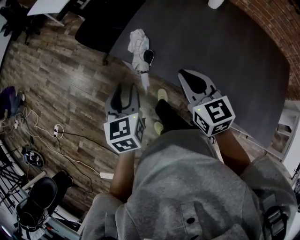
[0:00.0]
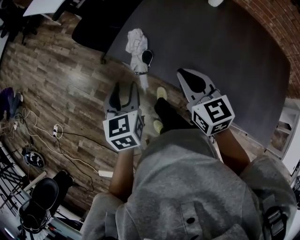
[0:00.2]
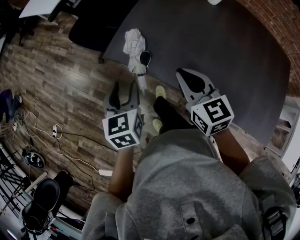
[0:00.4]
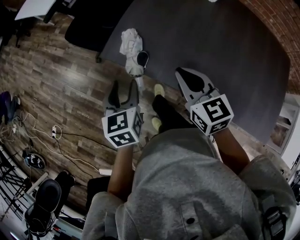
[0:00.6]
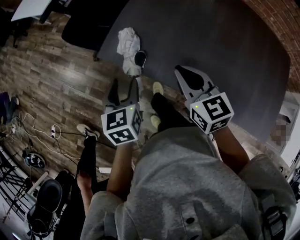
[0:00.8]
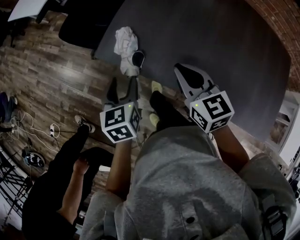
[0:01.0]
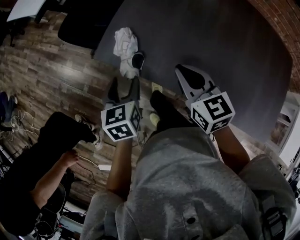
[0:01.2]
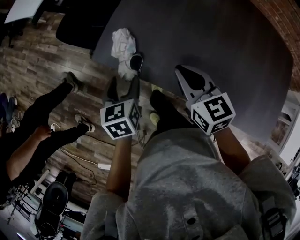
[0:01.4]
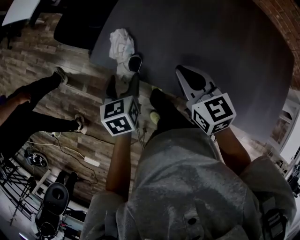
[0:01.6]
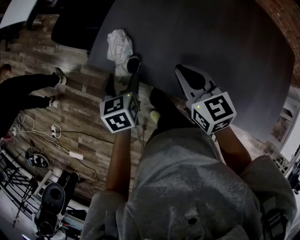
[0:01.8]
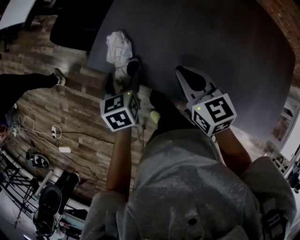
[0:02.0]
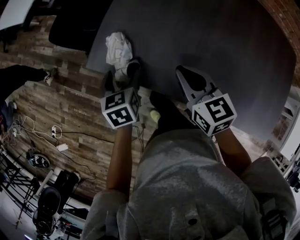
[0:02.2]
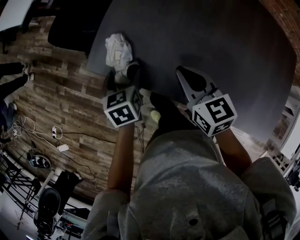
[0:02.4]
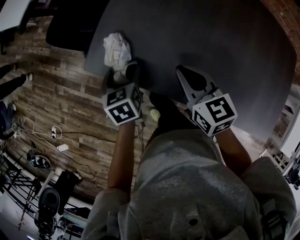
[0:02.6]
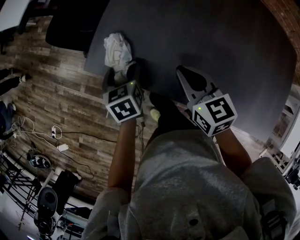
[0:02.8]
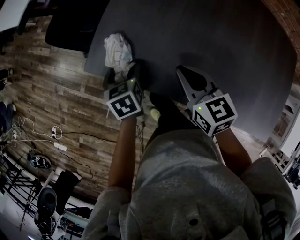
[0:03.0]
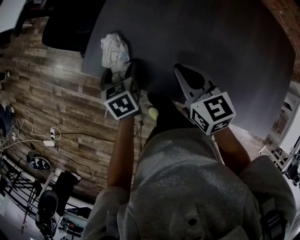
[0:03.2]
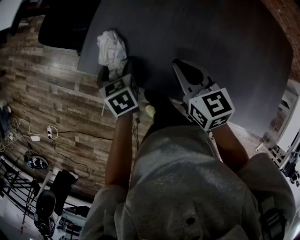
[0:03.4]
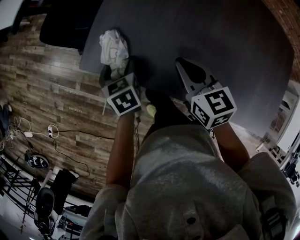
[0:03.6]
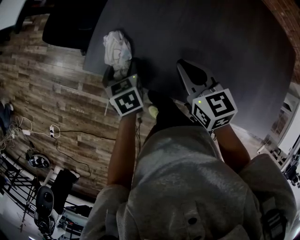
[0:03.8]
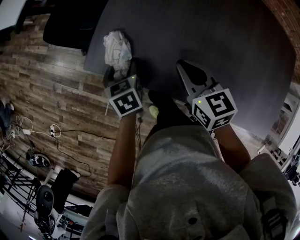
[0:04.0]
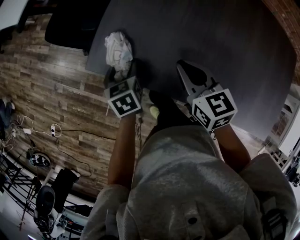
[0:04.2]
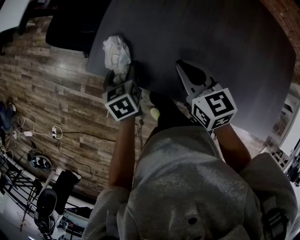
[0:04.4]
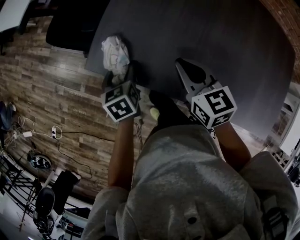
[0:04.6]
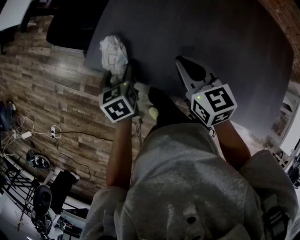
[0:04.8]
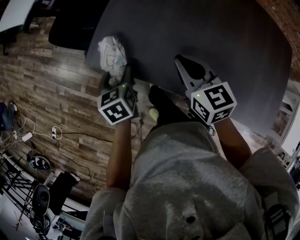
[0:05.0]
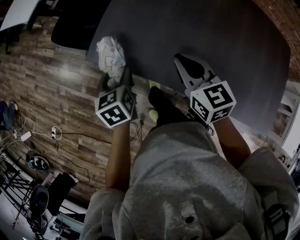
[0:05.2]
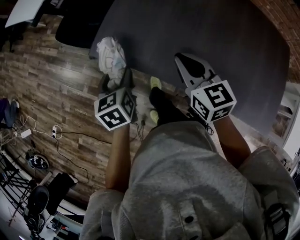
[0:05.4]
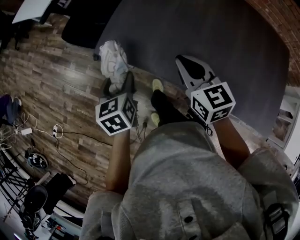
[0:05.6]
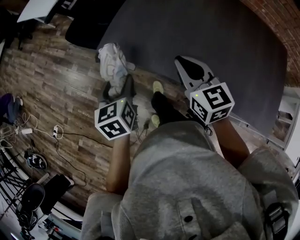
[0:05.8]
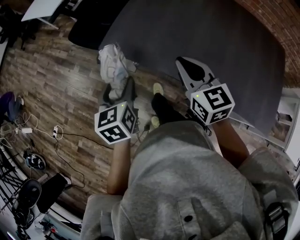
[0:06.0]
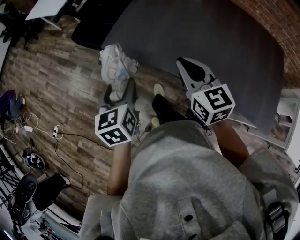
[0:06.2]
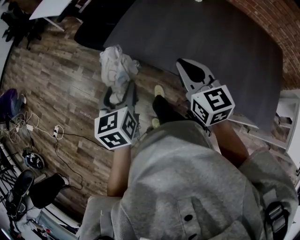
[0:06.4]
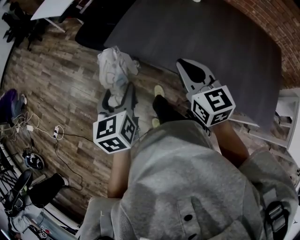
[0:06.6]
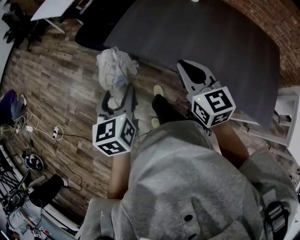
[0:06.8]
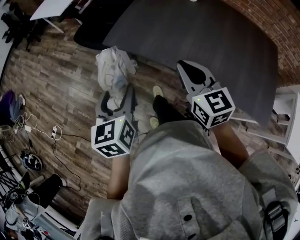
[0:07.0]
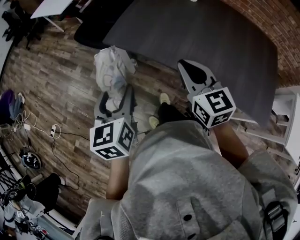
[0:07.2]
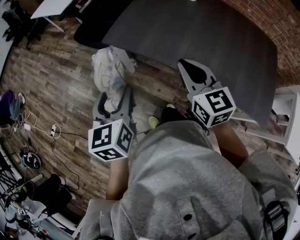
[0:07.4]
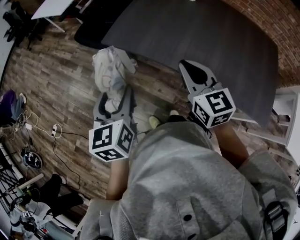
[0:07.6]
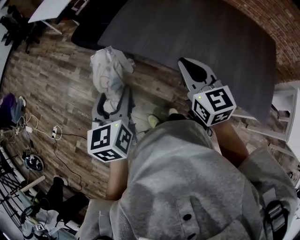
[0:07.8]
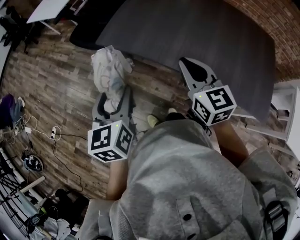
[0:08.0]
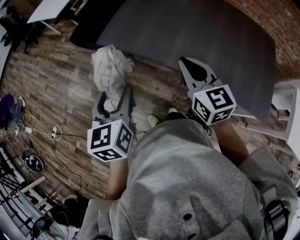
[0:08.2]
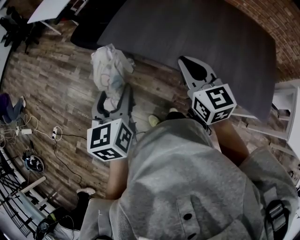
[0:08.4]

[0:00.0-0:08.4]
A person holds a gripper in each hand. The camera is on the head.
0:00.0 to 0:01.4: The right gripper travels forward and downward by about 10 cm. Meanwhile the left gripper heads downward, forward and to the right, covering about 15 cm.
0:01.4 to 0:02.8: The right gripper is displaced downward by some 5 cm. The left gripper moves downward and forward, some 10 cm.
0:02.8 to 0:04.2: The grippers stay close to where they were, moving slightly.
0:04.2 to 0:05.6: The right gripper travels backward and upward by about 10 cm. The left gripper is displaced upward and backward by approximately 15 cm.
0:05.6 to 0:07.0: The grippers both shift backward and upward by approximately 20 cm.
0:07.0 to 0:08.4: The grippers stay close to where they were, moving slightly.

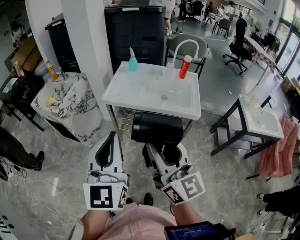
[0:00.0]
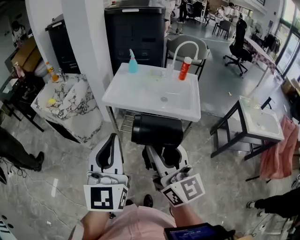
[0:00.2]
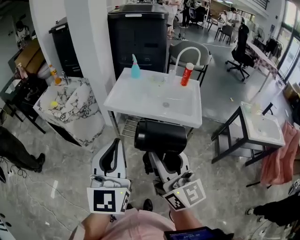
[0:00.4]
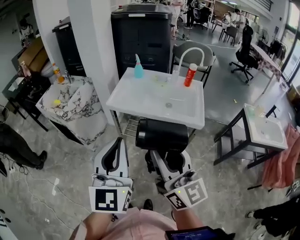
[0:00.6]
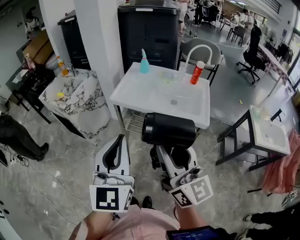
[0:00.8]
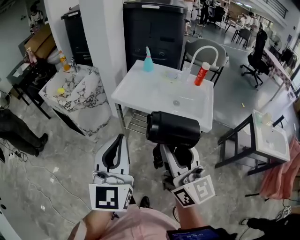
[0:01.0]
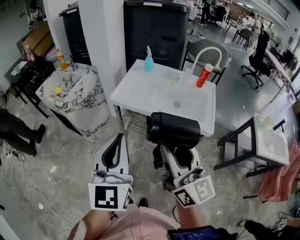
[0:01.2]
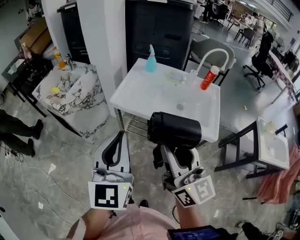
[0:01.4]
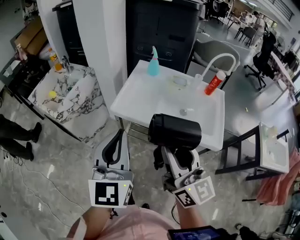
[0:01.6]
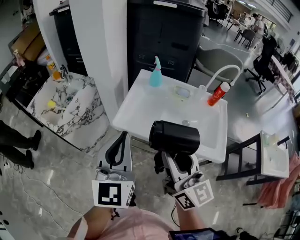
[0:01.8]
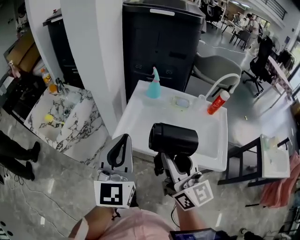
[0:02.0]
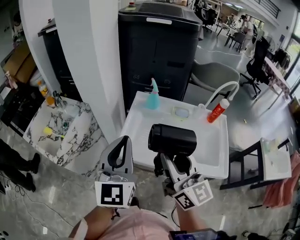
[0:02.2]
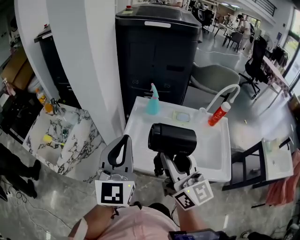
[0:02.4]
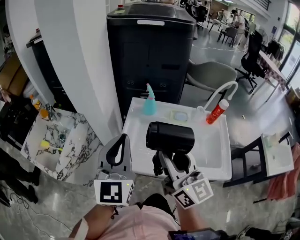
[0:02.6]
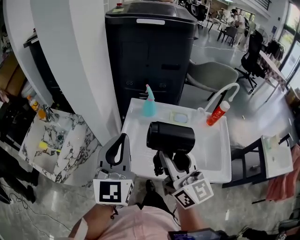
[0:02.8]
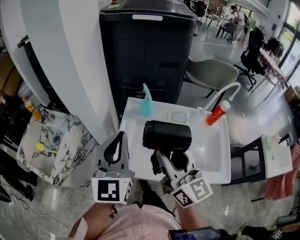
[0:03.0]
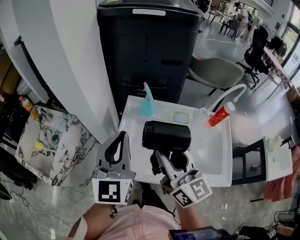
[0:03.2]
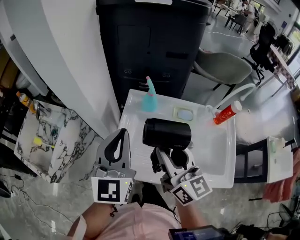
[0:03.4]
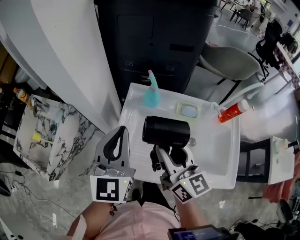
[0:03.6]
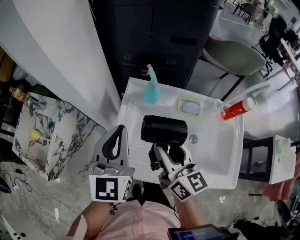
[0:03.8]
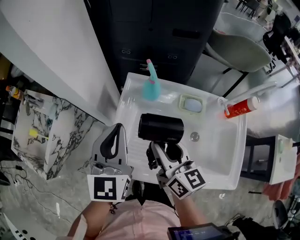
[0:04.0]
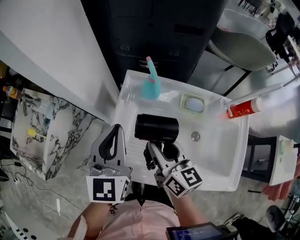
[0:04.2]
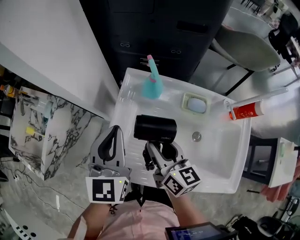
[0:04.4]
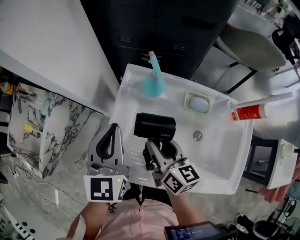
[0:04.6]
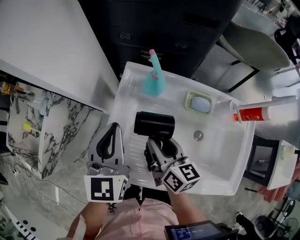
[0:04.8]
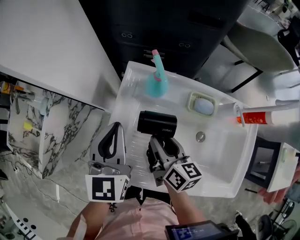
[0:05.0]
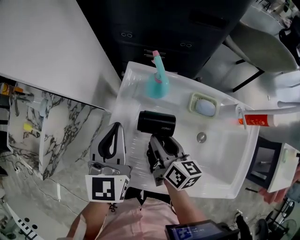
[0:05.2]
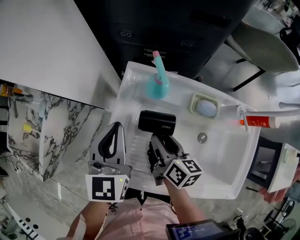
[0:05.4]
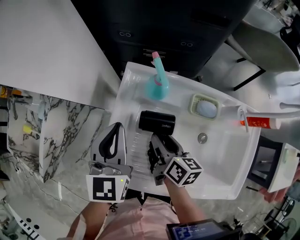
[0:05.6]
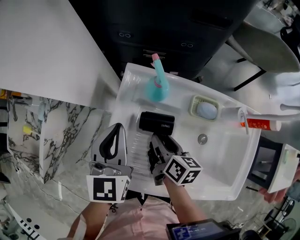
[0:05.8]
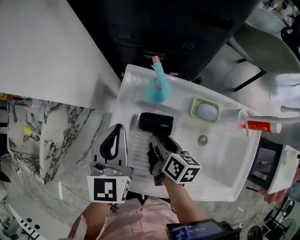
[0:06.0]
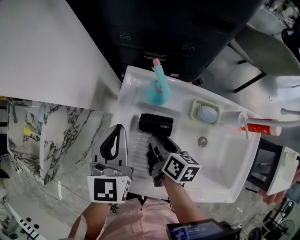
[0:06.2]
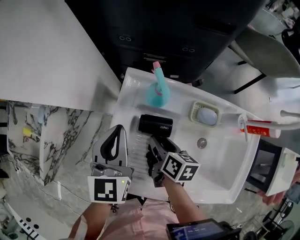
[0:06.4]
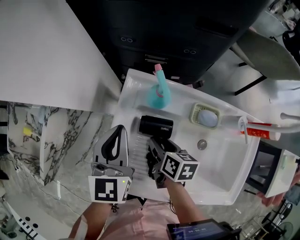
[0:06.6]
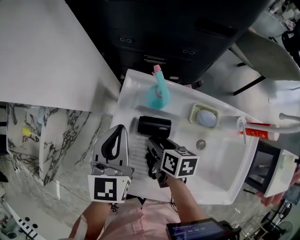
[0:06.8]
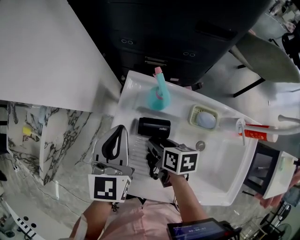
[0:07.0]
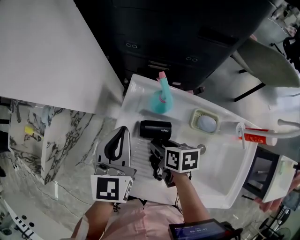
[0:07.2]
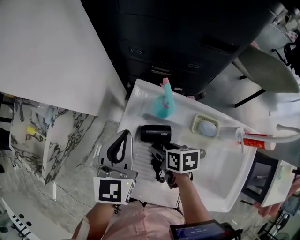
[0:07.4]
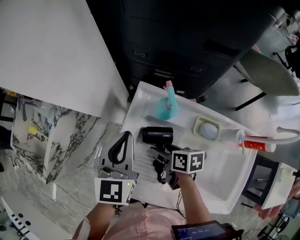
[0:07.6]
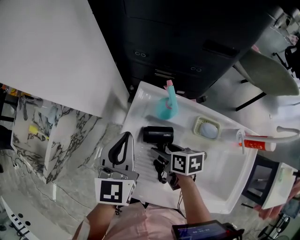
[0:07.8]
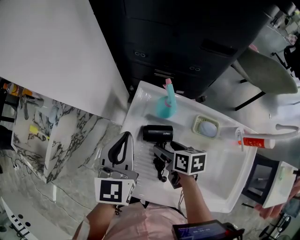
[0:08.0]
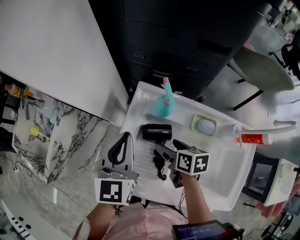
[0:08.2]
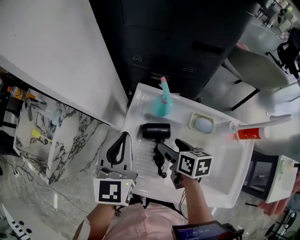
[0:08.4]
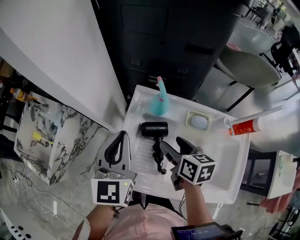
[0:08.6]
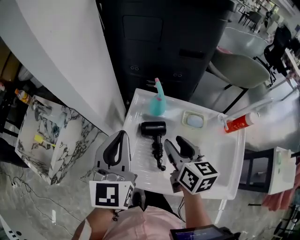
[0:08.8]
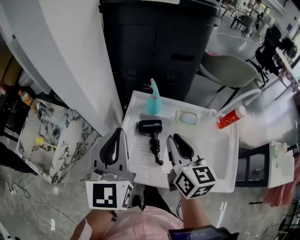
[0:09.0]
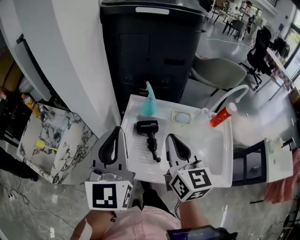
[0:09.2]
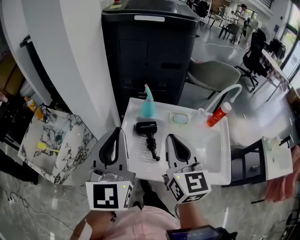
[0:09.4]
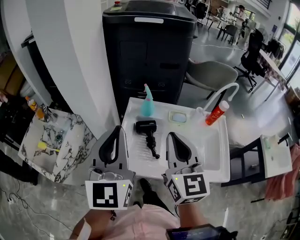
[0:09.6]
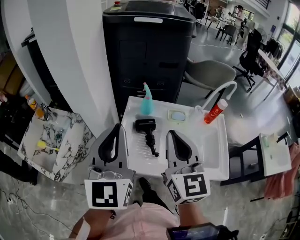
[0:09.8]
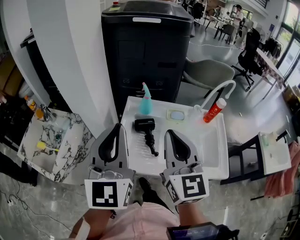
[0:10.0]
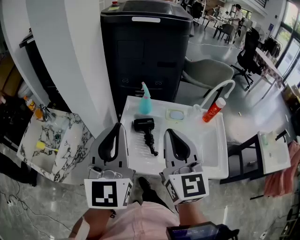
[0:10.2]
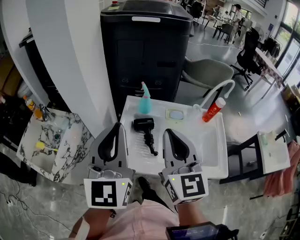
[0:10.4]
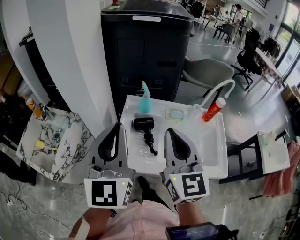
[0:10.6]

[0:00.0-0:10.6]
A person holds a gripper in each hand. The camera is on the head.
0:00.0 to 0:01.6: The two grippers go some 20 cm forward.
0:01.6 to 0:03.0: The grippers both shift forward by about 25 cm.
0:03.0 to 0:04.6: Both grippers travel together downward and forward, about 20 cm. The right gripper rotates approximately 30 degrees.
0:04.6 to 0:06.0: The right gripper moves downward, some 10 cm, and swivels approximately 30 degrees; the left gripper shifts by about 5 cm.
0:06.0 to 0:07.6: The right gripper changes its angle by roughly 30 degrees, and opens.
0:07.6 to 0:09.0: The right gripper is displaced upward by some 25 cm, rotates roughly 50 degrees, and closes. The left gripper is displaced upward and backward by about 20 cm.
0:09.0 to 0:10.6: The right gripper goes about 15 cm upward and backward, and swivels about 30 degrees; the left gripper shifts about 10 cm backward and upward.

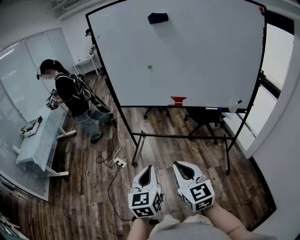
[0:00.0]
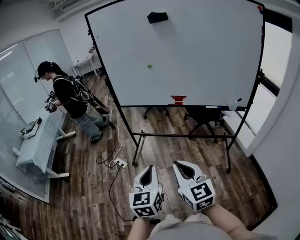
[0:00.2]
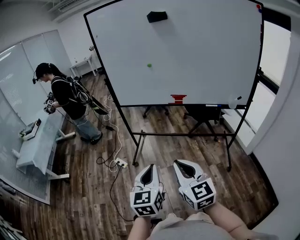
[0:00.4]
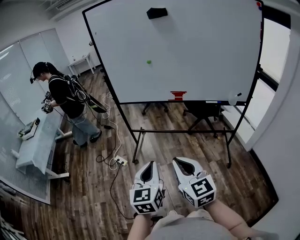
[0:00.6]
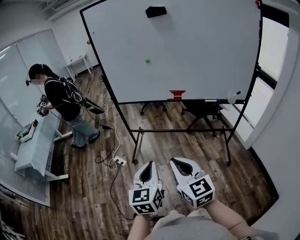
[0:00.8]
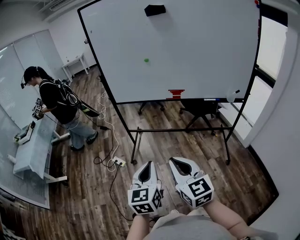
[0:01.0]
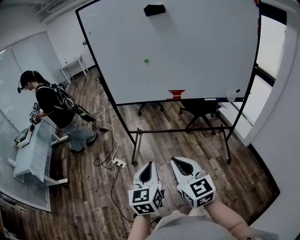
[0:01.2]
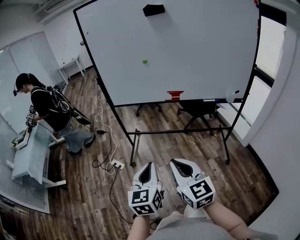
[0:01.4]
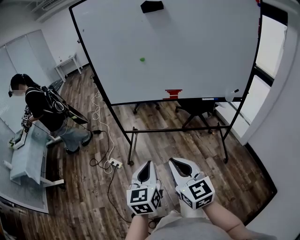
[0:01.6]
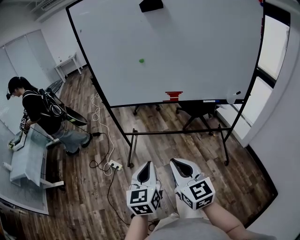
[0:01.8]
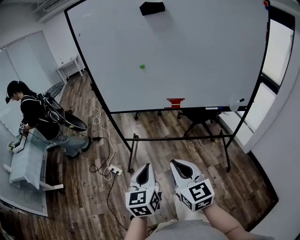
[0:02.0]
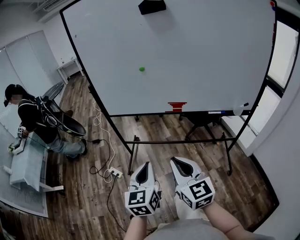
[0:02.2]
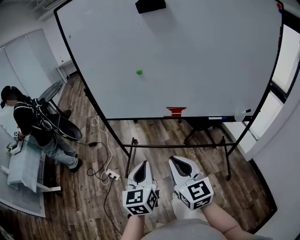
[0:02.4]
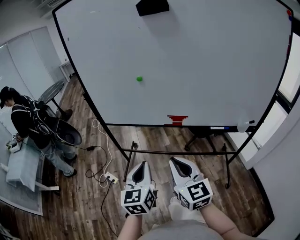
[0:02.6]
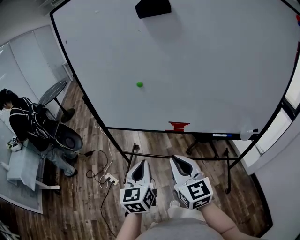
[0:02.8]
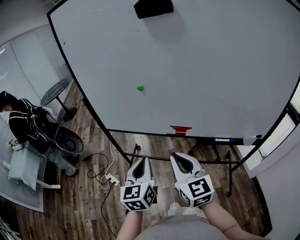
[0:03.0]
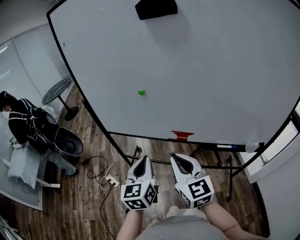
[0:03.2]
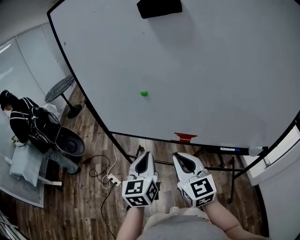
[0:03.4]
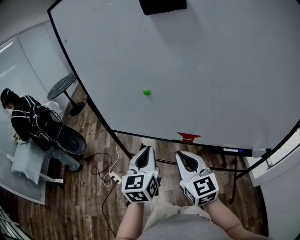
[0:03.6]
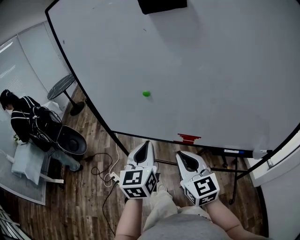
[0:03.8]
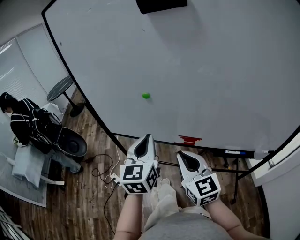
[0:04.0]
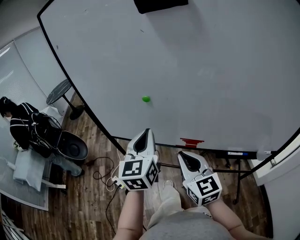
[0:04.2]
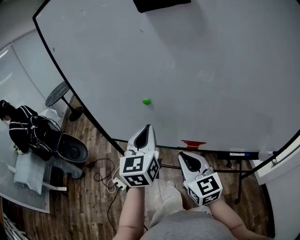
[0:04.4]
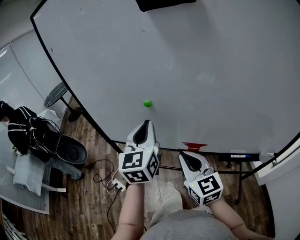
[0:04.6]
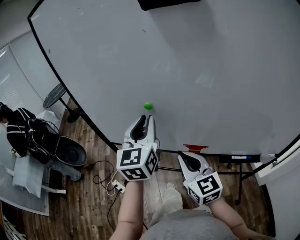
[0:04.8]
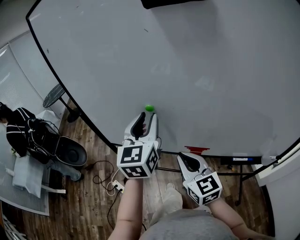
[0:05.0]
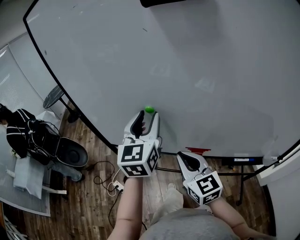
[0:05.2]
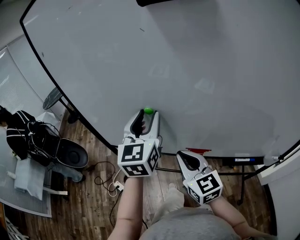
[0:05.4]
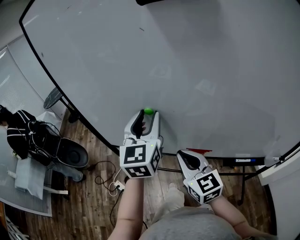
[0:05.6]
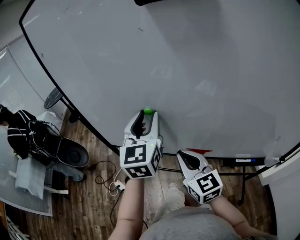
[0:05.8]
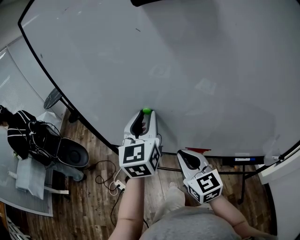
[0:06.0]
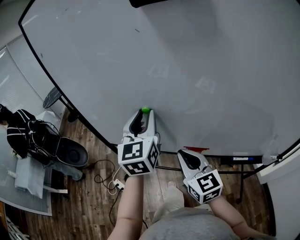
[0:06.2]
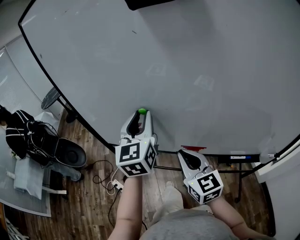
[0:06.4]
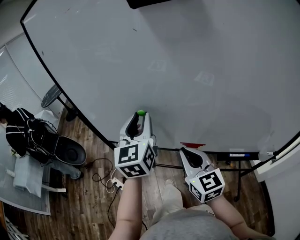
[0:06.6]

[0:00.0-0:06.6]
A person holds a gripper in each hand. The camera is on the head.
0:00.0 to 0:01.6: The right gripper goes some 5 cm to the left, while the left gripper goes roughly 5 cm forward.
0:01.6 to 0:03.2: The two grippers go roughly 35 cm forward.
0:03.2 to 0:05.0: The right gripper shifts approximately 15 cm forward; the left gripper goes roughly 25 cm forward and upward, and opens its fingers.
0:05.0 to 0:06.6: The grippers make only small movements.
